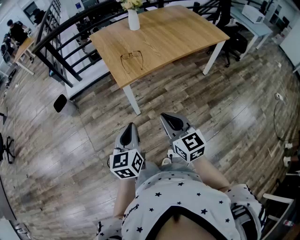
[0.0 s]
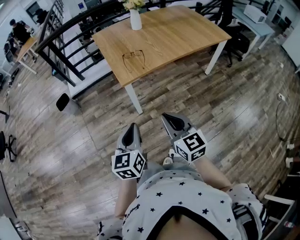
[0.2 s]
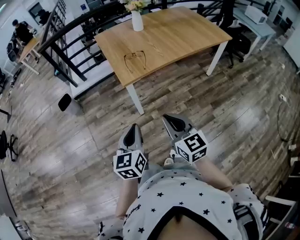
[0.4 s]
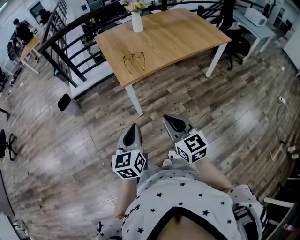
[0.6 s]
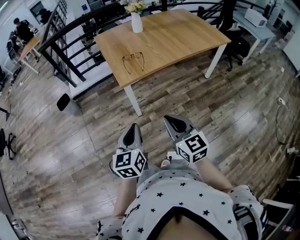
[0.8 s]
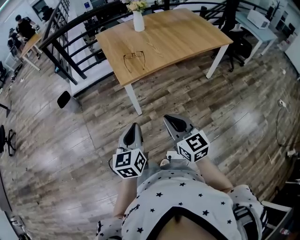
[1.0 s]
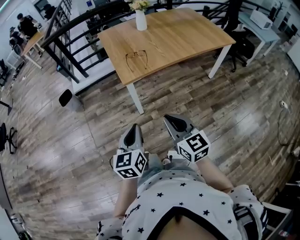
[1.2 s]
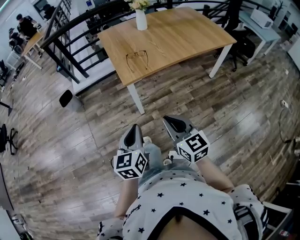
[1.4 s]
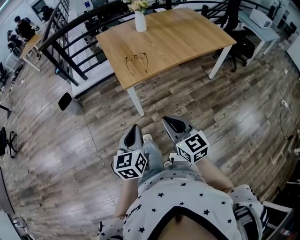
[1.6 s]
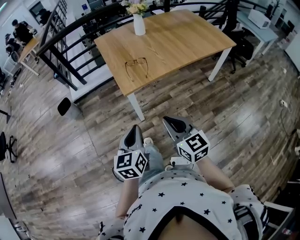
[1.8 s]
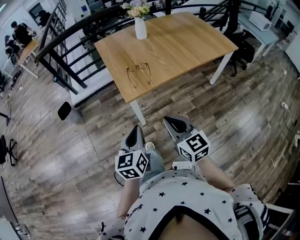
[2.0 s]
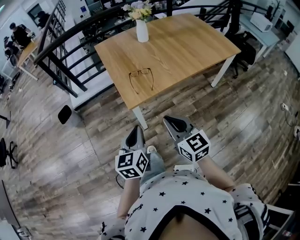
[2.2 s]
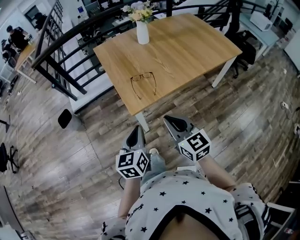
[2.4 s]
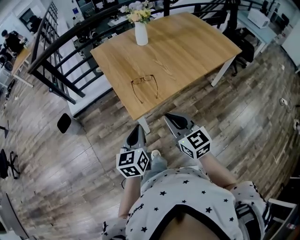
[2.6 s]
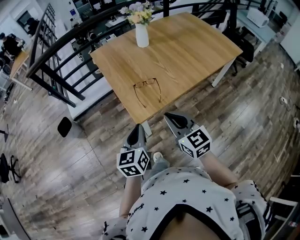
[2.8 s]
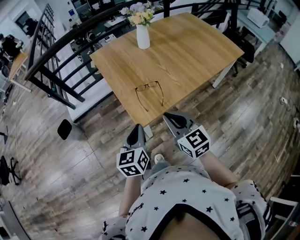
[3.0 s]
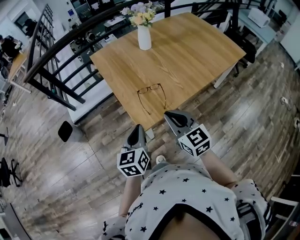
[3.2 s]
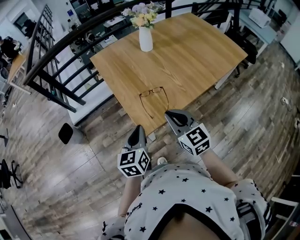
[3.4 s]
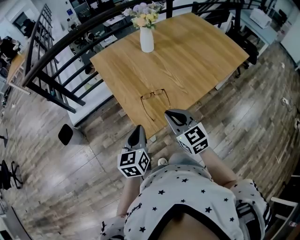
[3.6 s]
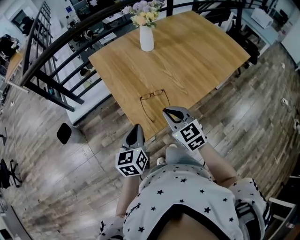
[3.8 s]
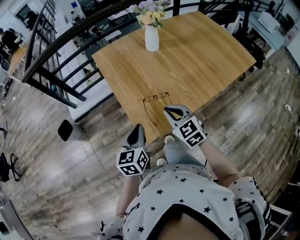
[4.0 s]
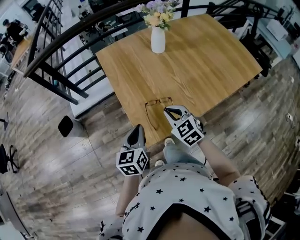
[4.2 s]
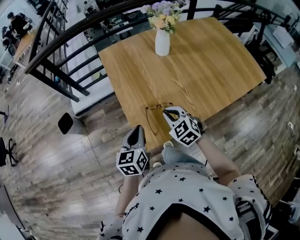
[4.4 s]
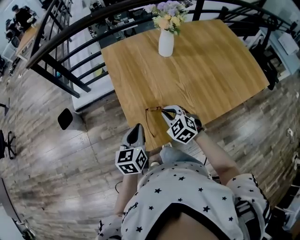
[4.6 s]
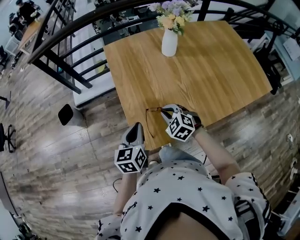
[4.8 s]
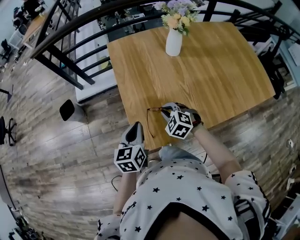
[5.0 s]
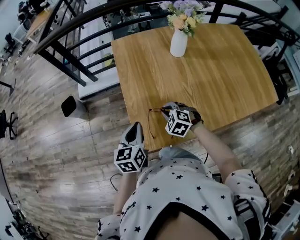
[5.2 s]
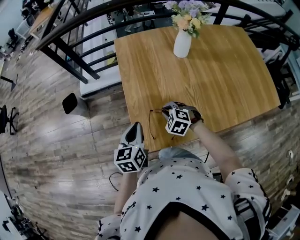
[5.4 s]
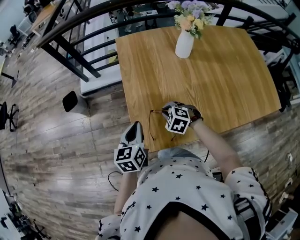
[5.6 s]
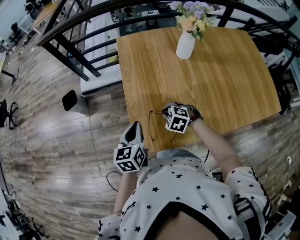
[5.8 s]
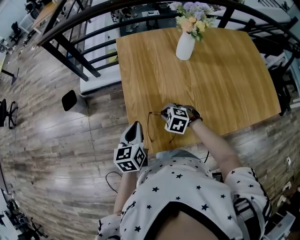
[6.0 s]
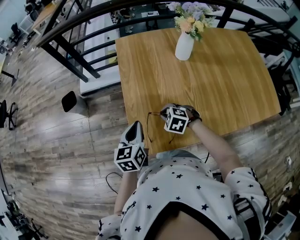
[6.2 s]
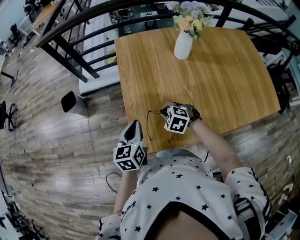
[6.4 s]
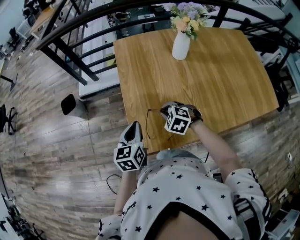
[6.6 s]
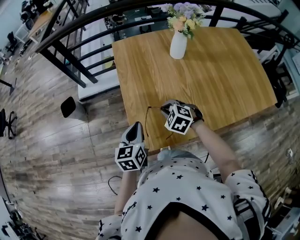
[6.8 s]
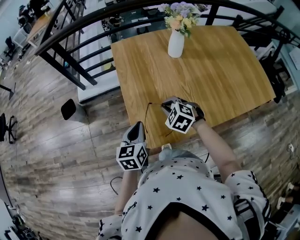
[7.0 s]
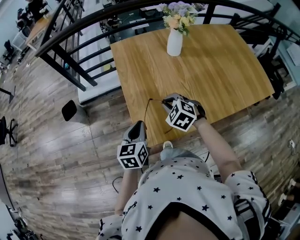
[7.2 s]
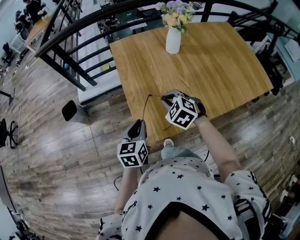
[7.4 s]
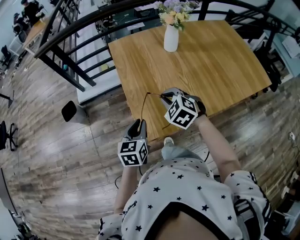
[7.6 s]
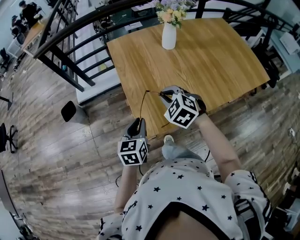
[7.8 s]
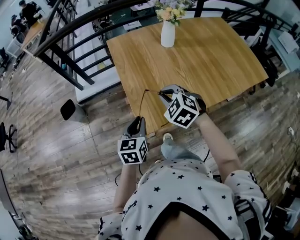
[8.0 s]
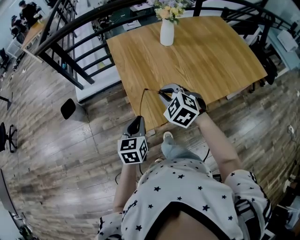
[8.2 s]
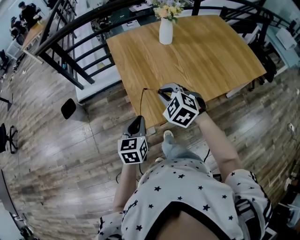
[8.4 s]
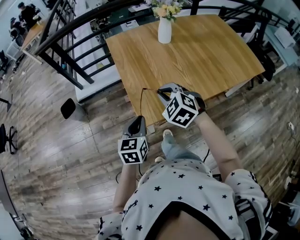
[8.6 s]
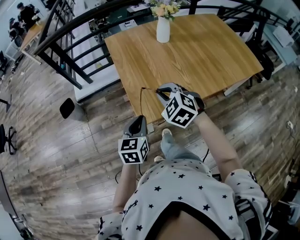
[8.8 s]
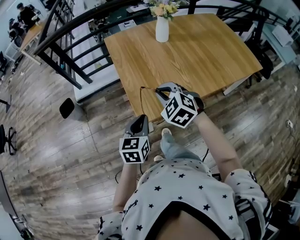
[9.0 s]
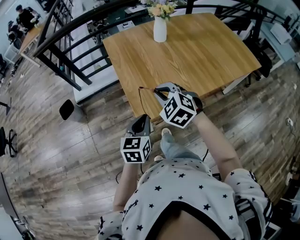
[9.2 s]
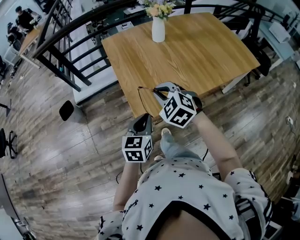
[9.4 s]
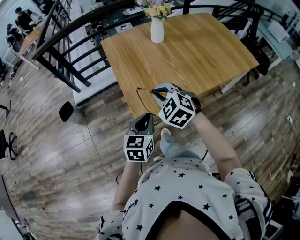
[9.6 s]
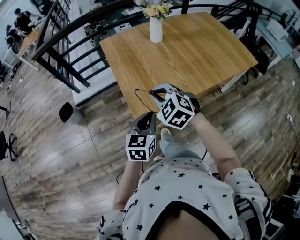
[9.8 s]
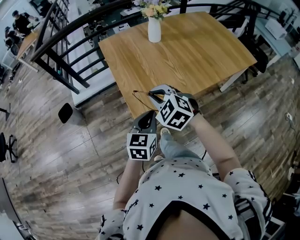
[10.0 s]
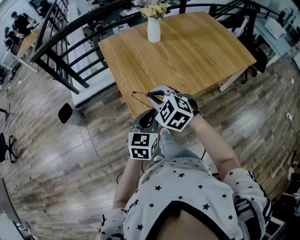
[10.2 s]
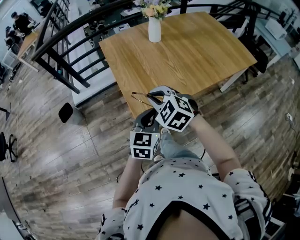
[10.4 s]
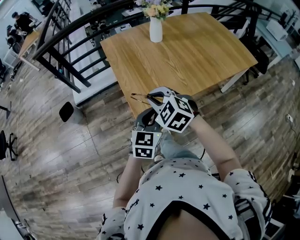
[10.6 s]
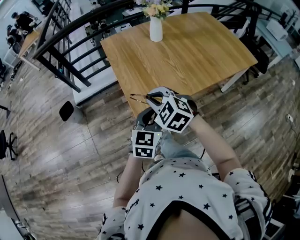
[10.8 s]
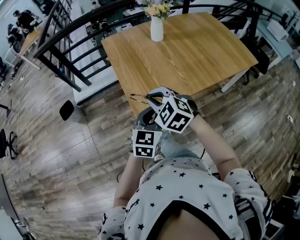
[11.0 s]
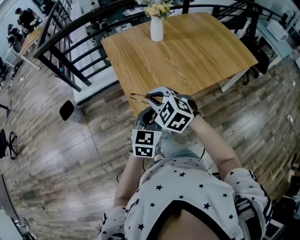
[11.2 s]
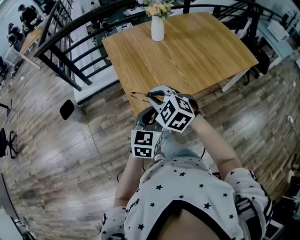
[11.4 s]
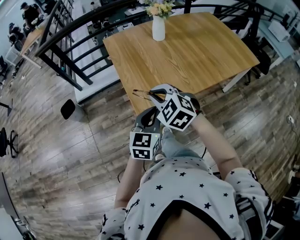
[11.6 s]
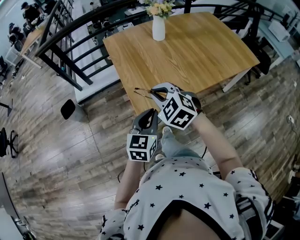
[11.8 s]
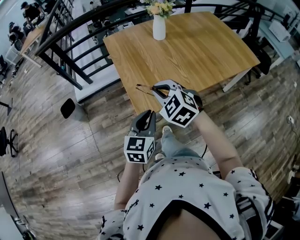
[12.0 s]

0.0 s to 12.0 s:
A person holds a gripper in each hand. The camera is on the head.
0.0 to 1.6 s: The grippers make only small movements.
1.6 to 3.0 s: The two grippers go approximately 30 cm forward.
3.0 to 4.4 s: The left gripper is displaced forward by approximately 15 cm, while the right gripper travels forward and downward by about 25 cm, and swivels approximately 30 degrees.
4.4 to 6.0 s: The left gripper changes place by approximately 5 cm. The right gripper goes about 10 cm downward and forward, and swivels roughly 40 degrees.
6.0 to 7.6 s: The right gripper moves upward, some 15 cm, and rotates some 30 degrees, while the left gripper heads backward, covering some 5 cm.
7.6 to 9.0 s: The two grippers go roughly 10 cm backward.
9.0 to 10.4 s: The left gripper heads to the right, covering about 5 cm.
10.4 to 12.0 s: There are only small adjustments of the grippers.

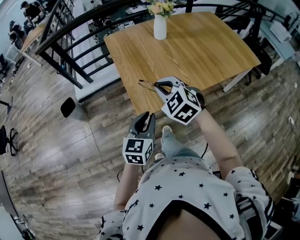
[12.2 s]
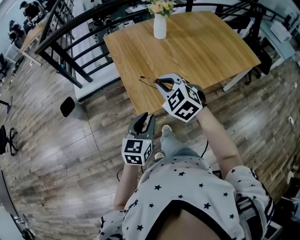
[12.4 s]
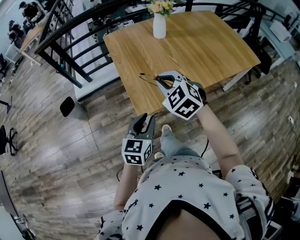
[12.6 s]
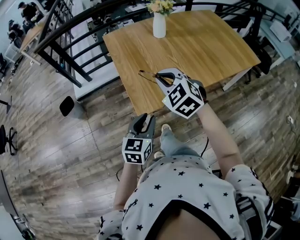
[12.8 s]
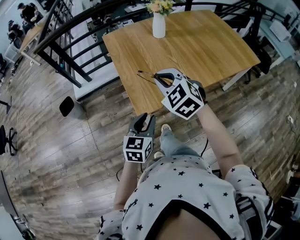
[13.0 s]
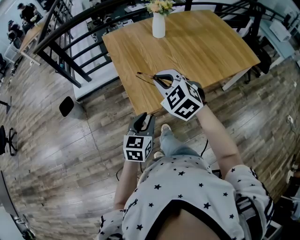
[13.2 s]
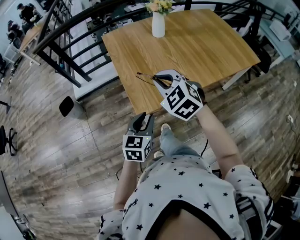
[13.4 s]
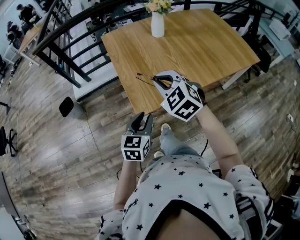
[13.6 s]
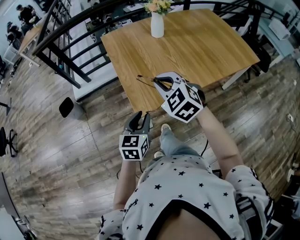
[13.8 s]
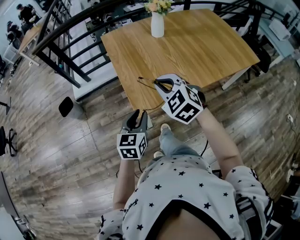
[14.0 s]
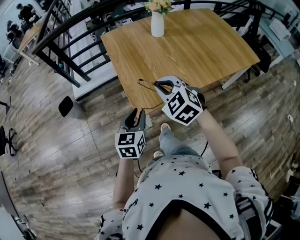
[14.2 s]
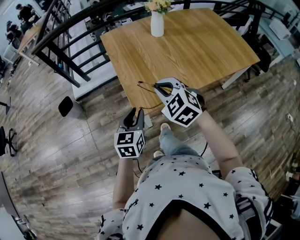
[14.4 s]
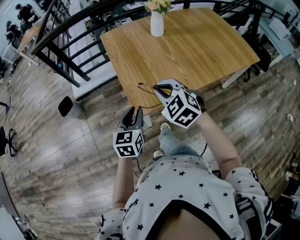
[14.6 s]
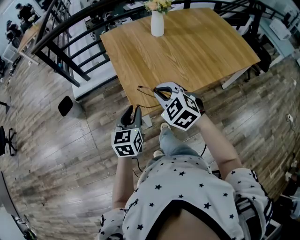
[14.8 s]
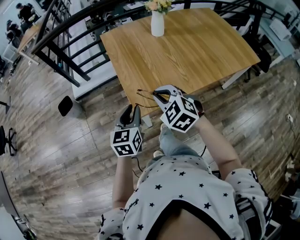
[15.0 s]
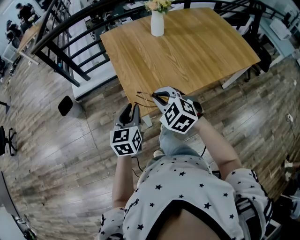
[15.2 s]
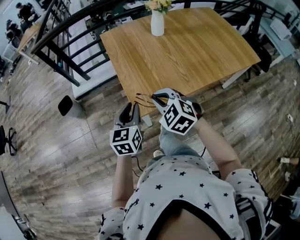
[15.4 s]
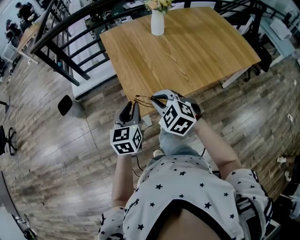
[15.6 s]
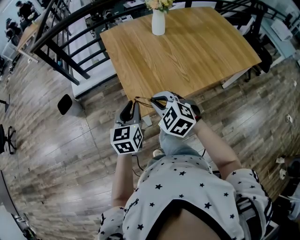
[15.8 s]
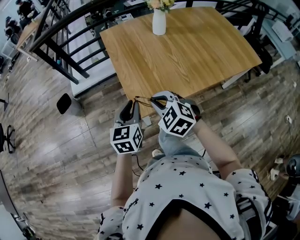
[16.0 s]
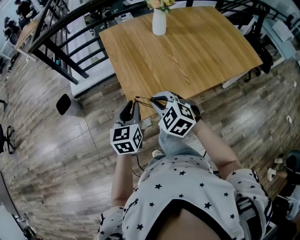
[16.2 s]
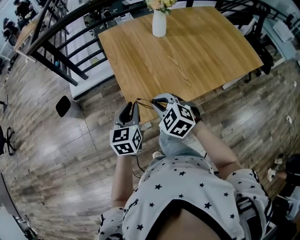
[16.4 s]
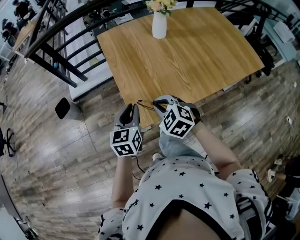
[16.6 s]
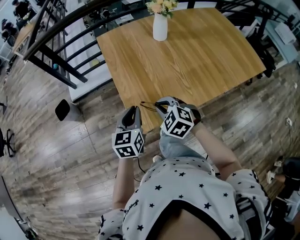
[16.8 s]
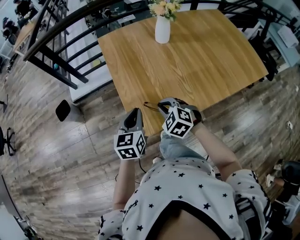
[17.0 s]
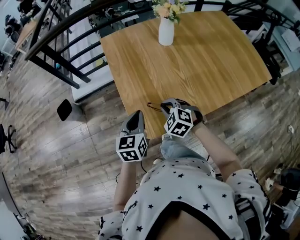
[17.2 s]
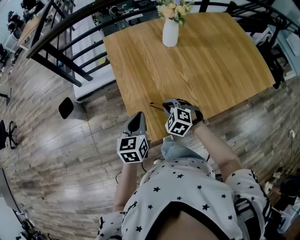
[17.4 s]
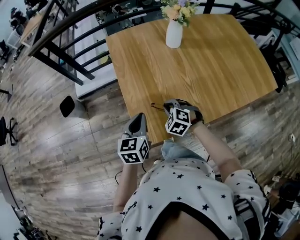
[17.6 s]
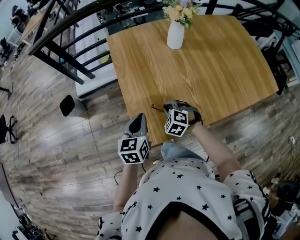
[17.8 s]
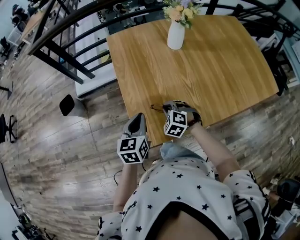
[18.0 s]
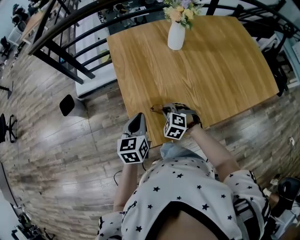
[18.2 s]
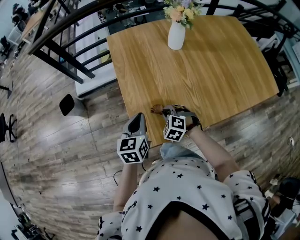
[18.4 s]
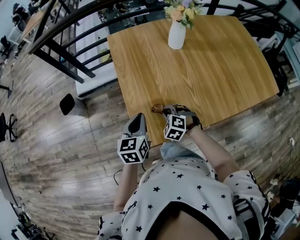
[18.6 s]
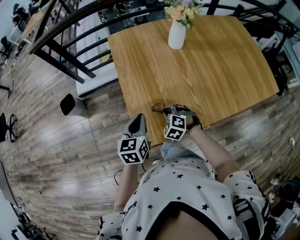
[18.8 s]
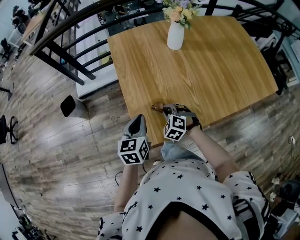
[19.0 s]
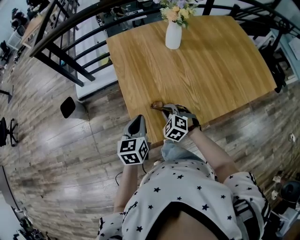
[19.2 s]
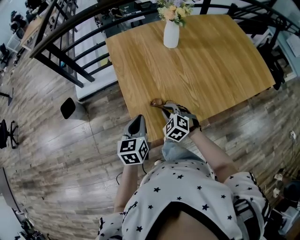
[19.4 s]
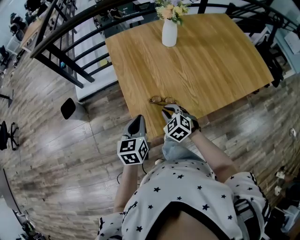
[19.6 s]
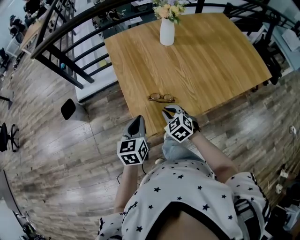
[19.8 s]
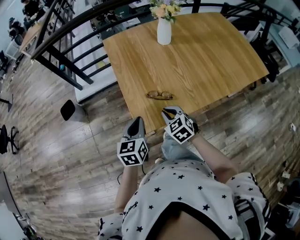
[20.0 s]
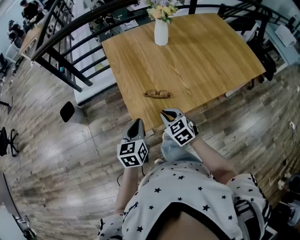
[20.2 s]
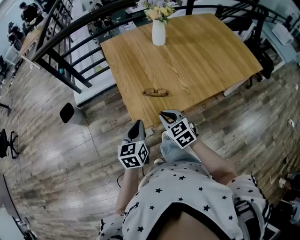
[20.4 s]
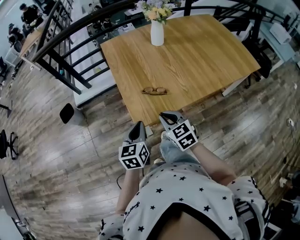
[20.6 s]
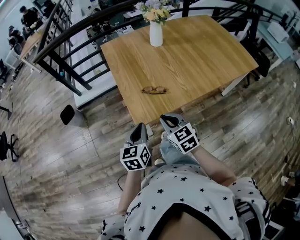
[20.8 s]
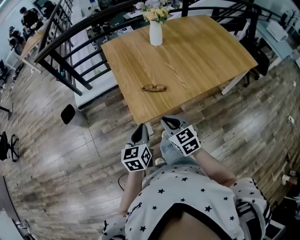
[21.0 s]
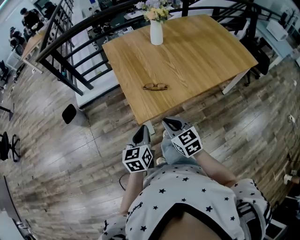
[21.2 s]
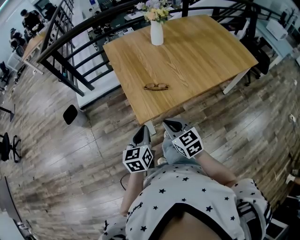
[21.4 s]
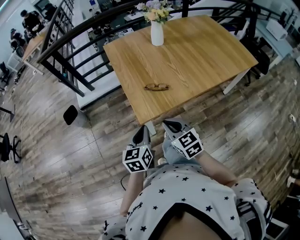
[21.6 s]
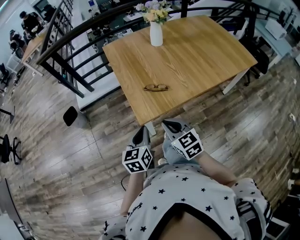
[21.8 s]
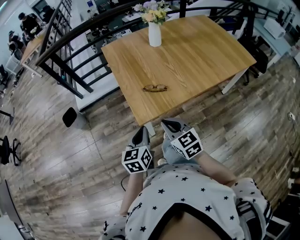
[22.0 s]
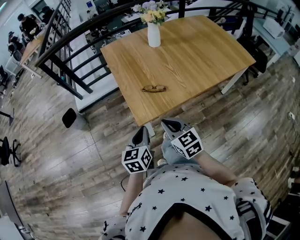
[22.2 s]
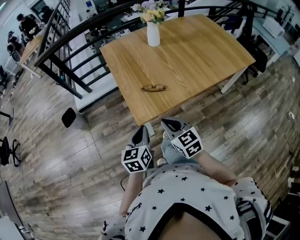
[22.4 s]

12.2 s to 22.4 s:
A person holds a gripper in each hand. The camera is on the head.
12.2 to 13.6 s: The grippers move only a little.
13.6 to 15.2 s: The left gripper ends up some 5 cm from where it was, while the right gripper moves downward, roughly 5 cm.
15.2 to 16.6 s: The left gripper shifts approximately 5 cm forward; the right gripper travels forward and downward by approximately 5 cm.
16.6 to 18.0 s: The left gripper heads forward, covering about 5 cm; the right gripper heads downward and forward, covering about 15 cm.
18.0 to 19.4 s: The grippers move only a little.
19.4 to 21.0 s: The right gripper heads backward and upward, covering approximately 20 cm, and rotates some 40 degrees. The left gripper goes roughly 15 cm backward.
21.0 to 22.4 s: There are only small adjustments of the grippers.

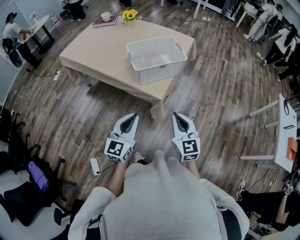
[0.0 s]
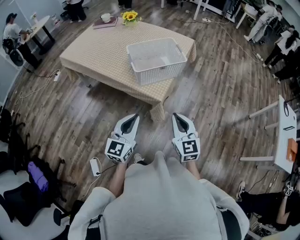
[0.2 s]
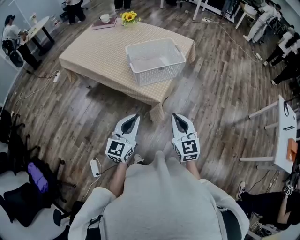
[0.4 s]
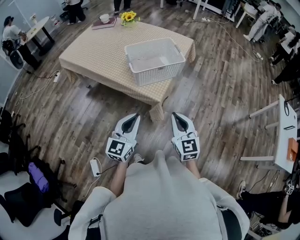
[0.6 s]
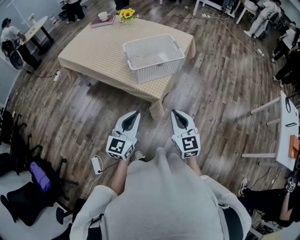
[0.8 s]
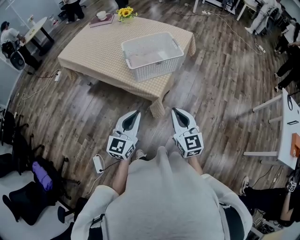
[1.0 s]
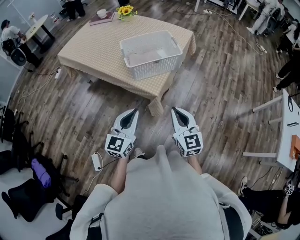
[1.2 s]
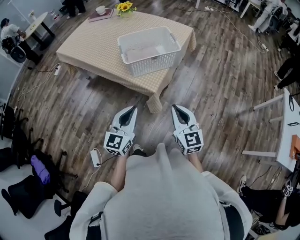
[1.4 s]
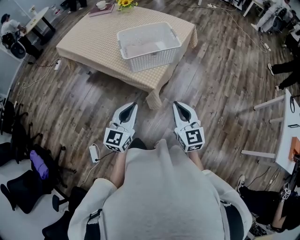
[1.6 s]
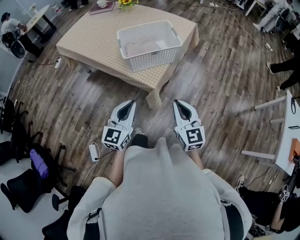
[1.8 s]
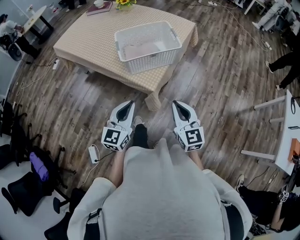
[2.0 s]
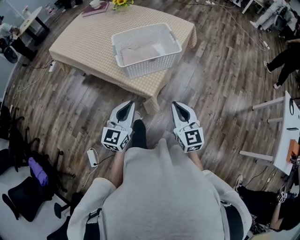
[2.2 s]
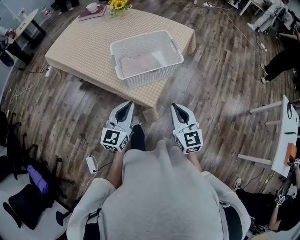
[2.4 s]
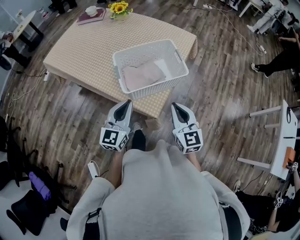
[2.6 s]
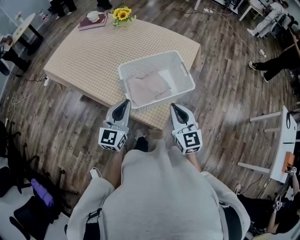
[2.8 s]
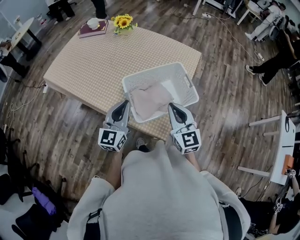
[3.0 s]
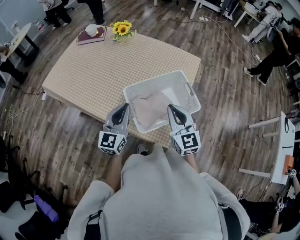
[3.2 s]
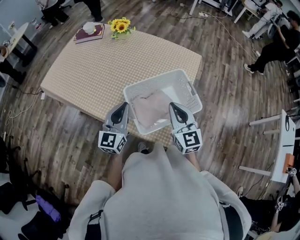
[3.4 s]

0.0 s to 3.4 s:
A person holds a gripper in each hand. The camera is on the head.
0.0 to 1.6 s: The grippers both shift to the right by roughly 5 cm.
1.6 to 3.4 s: The grippers both shift forward by about 40 cm.
